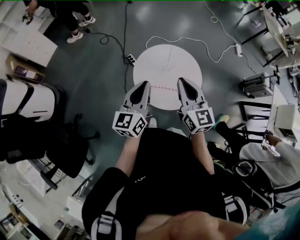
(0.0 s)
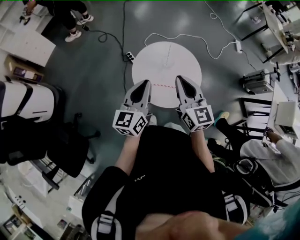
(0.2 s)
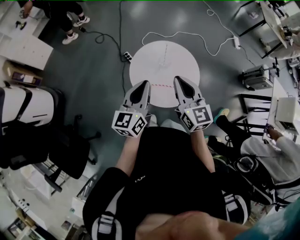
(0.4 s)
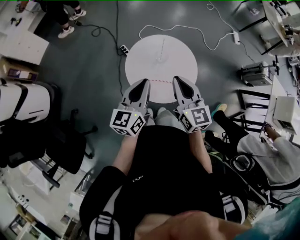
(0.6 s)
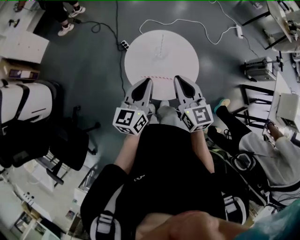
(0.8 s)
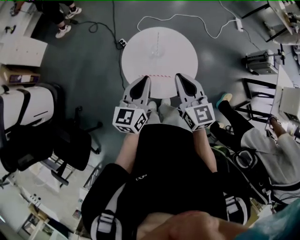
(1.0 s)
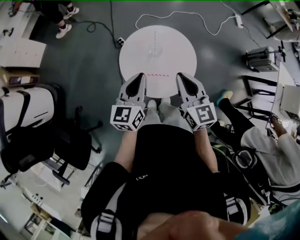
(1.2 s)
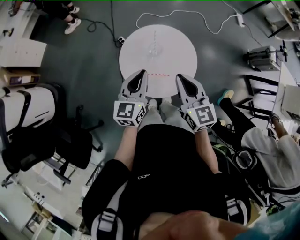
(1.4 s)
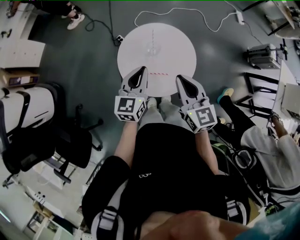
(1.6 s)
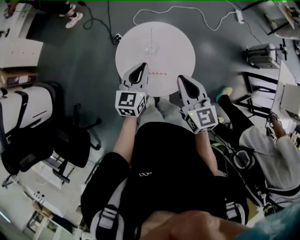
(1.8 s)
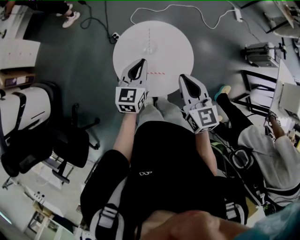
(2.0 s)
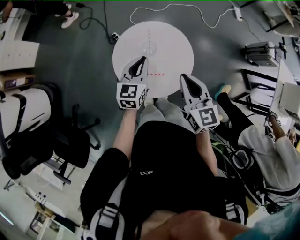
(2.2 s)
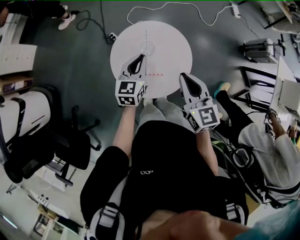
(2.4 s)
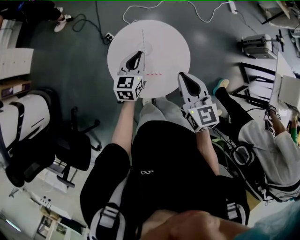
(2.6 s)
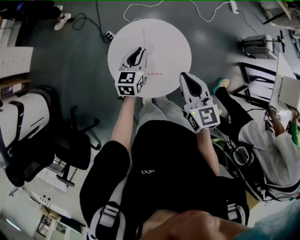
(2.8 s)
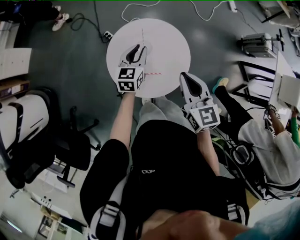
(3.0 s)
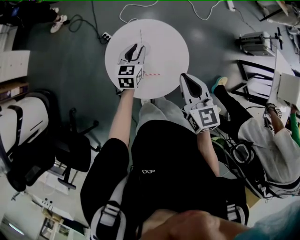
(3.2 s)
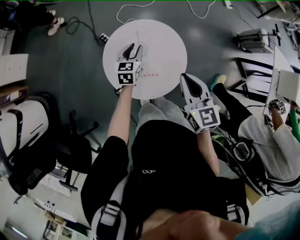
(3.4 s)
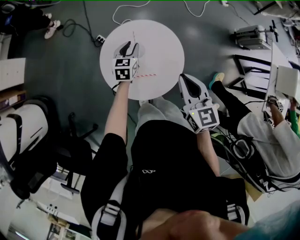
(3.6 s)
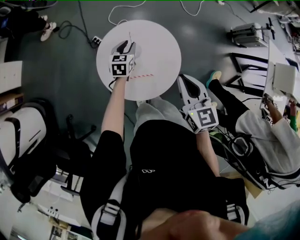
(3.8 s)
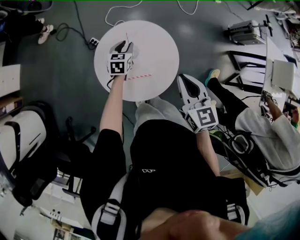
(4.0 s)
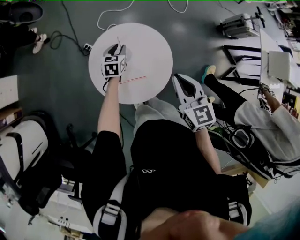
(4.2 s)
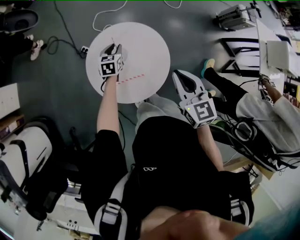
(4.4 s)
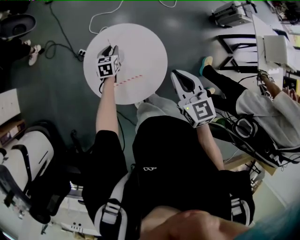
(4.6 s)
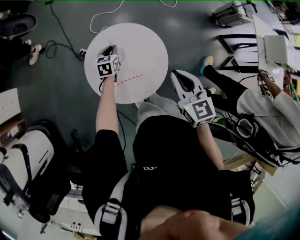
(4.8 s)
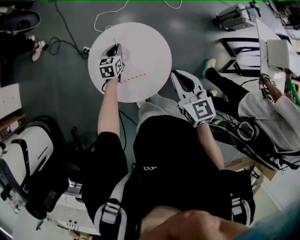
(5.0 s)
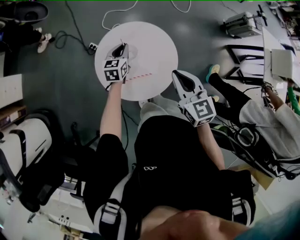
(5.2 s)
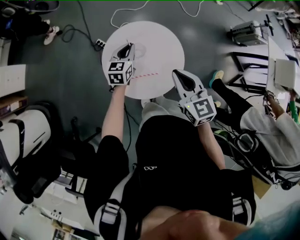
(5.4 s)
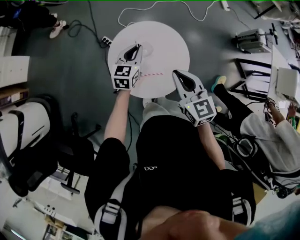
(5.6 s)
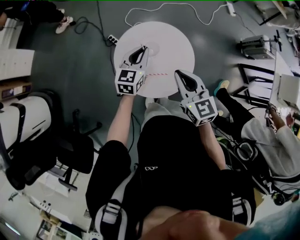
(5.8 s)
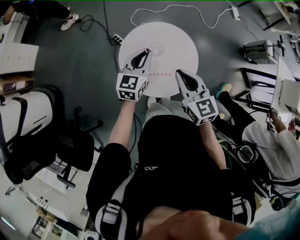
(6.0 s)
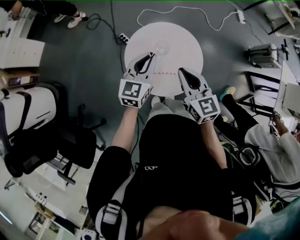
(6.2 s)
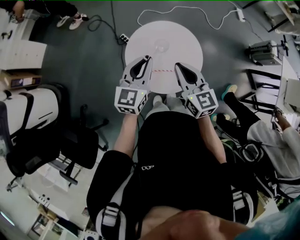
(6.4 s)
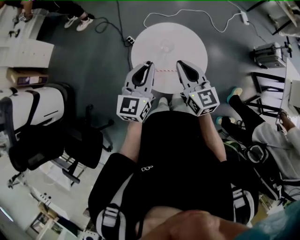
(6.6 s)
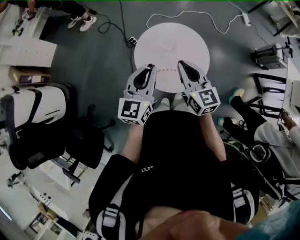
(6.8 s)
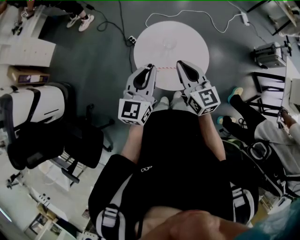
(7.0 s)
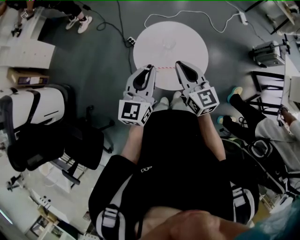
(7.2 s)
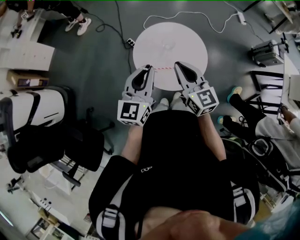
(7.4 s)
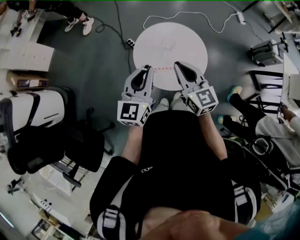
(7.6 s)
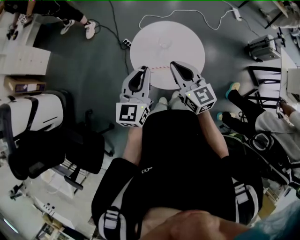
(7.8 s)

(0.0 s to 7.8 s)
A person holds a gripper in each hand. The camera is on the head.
0.0 s - 1.6 s: The left gripper shifts some 15 cm to the right, downward and forward; the right gripper is displaced to the right and downward by approximately 10 cm.
1.6 s - 3.2 s: The left gripper moves forward and downward, some 20 cm, and opens up. Meanwhile the right gripper changes place by some 5 cm.
3.2 s - 4.6 s: The left gripper heads downward and forward, covering roughly 10 cm.
4.6 s - 6.2 s: The left gripper moves upward and backward, approximately 25 cm, and rotates about 30 degrees. The right gripper heads to the left, covering approximately 10 cm, and turns by about 20 degrees.
6.2 s - 7.8 s: The right gripper is displaced to the left by about 5 cm. The left gripper travels backward, to the left and upward by roughly 15 cm.

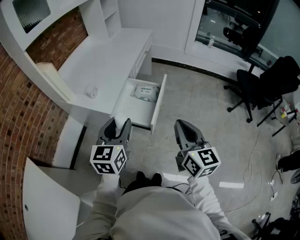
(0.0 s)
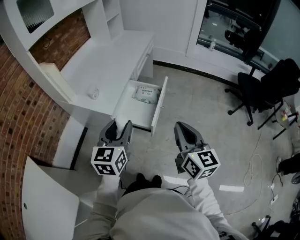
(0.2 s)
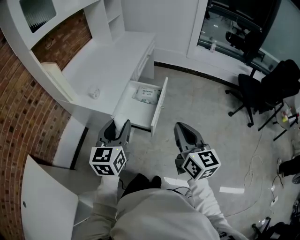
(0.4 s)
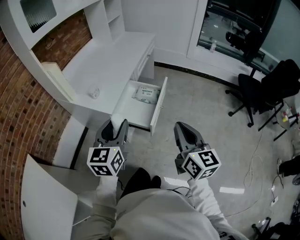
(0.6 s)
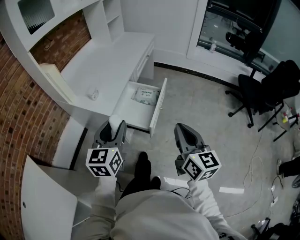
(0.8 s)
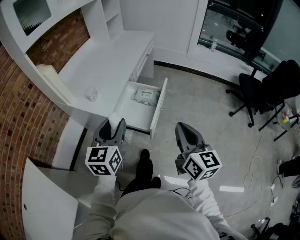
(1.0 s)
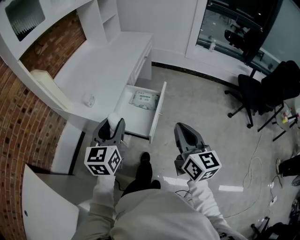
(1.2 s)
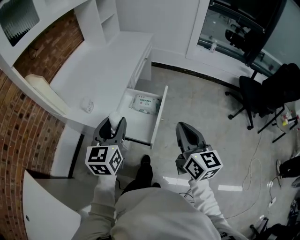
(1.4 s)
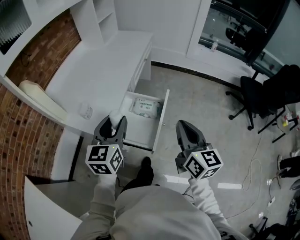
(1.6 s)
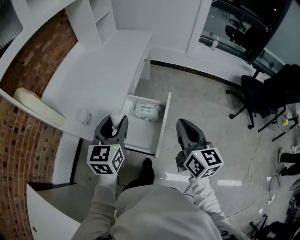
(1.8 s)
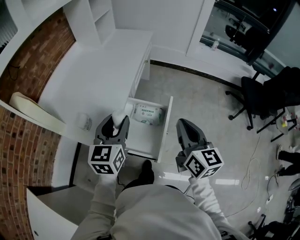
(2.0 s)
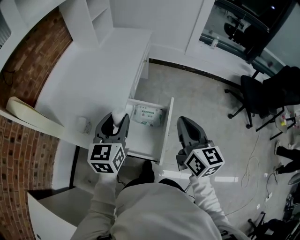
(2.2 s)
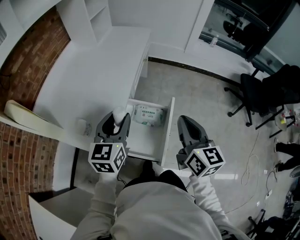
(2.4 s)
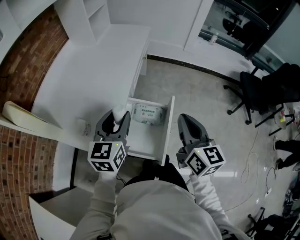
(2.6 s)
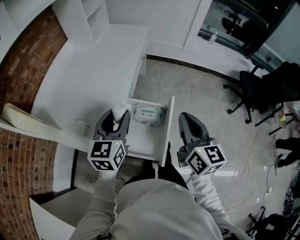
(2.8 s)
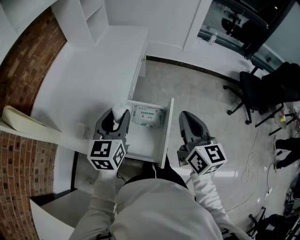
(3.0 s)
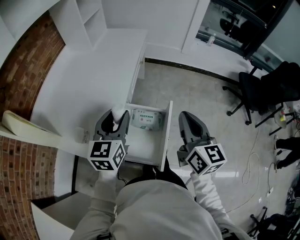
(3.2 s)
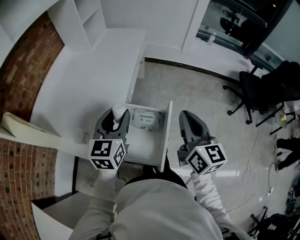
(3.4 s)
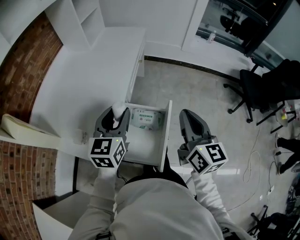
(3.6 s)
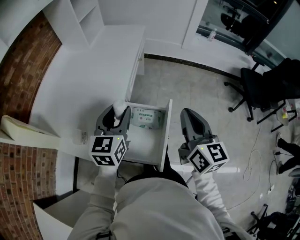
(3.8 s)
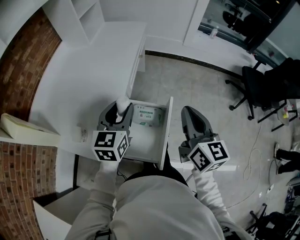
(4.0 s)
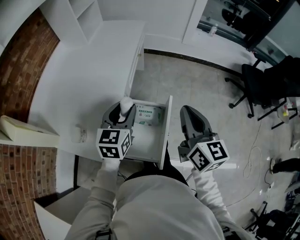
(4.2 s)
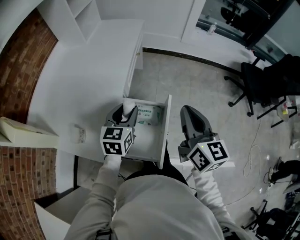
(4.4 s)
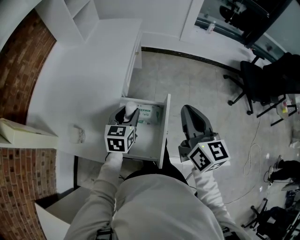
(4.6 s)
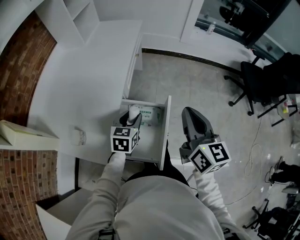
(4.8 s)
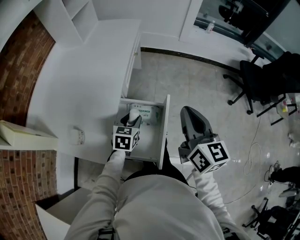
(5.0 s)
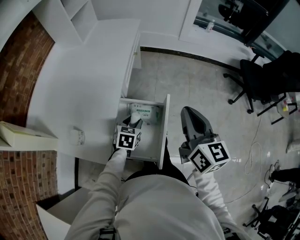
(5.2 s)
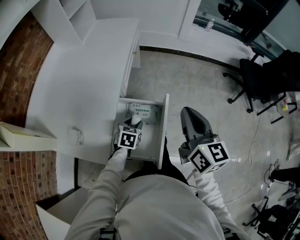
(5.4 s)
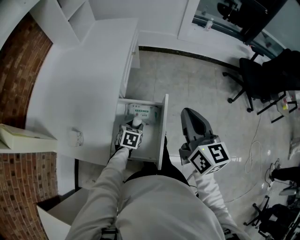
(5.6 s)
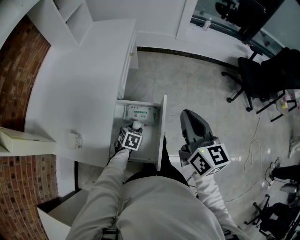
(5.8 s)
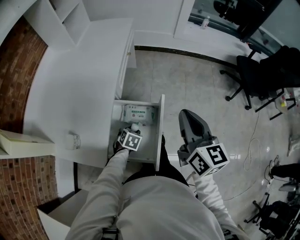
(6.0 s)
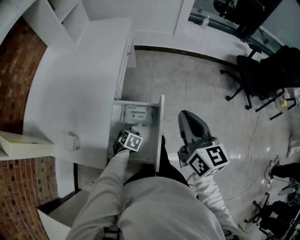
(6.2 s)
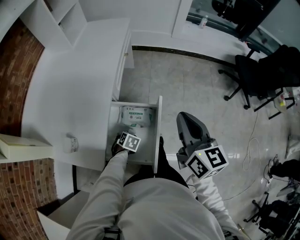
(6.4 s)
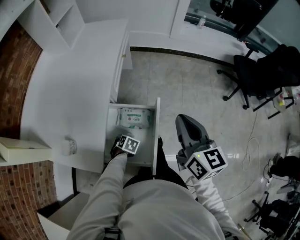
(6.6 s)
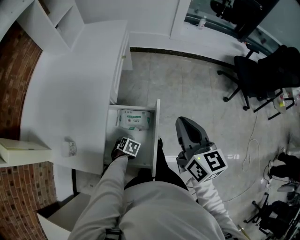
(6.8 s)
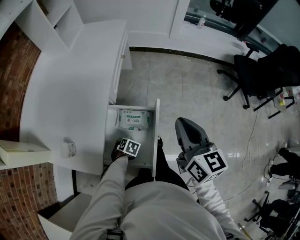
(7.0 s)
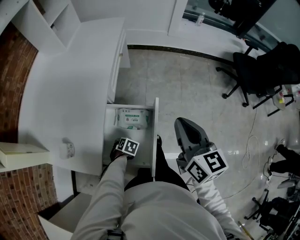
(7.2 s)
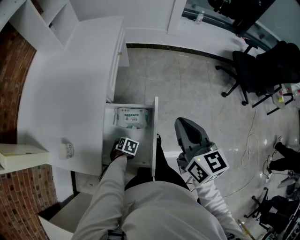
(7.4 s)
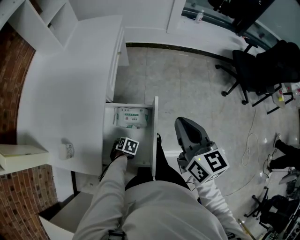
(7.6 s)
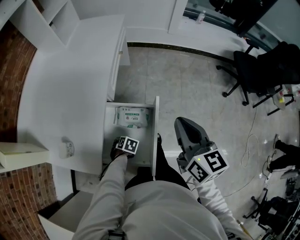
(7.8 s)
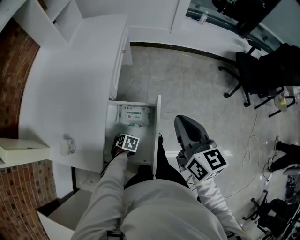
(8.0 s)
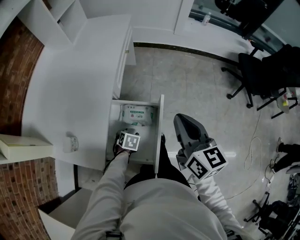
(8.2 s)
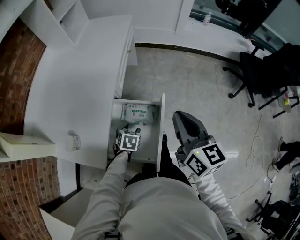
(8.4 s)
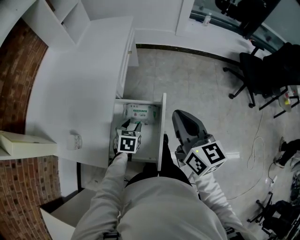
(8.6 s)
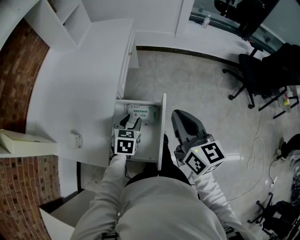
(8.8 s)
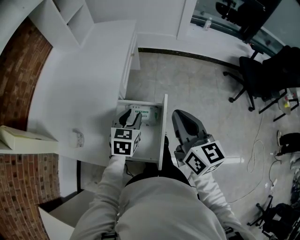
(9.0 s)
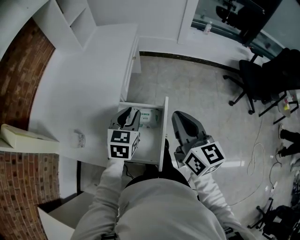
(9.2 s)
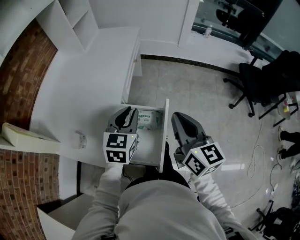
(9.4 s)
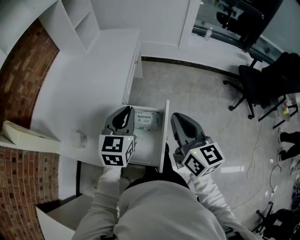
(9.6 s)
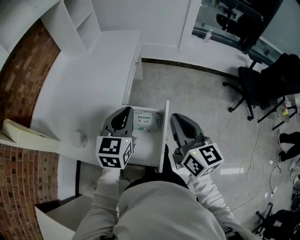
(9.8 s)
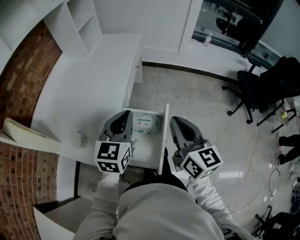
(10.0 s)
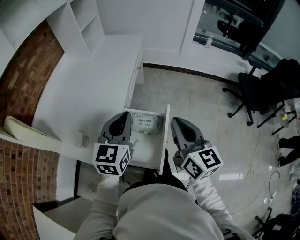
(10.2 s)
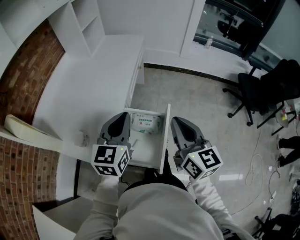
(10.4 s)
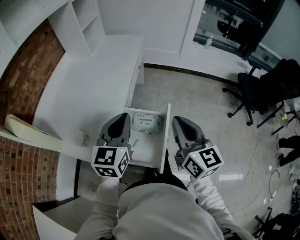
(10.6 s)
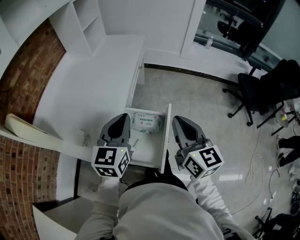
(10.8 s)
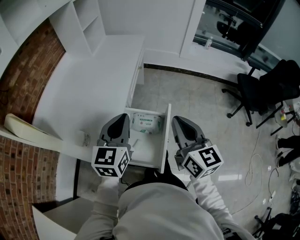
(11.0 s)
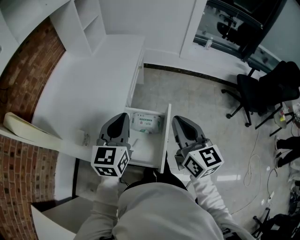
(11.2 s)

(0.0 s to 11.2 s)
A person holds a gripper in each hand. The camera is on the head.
0.0 s - 1.6 s: The grippers both shift forward by some 15 cm.
1.6 s - 3.2 s: Both grippers travel together forward, some 15 cm.
3.2 s - 4.8 s: The left gripper goes approximately 15 cm downward and to the right, and turns by some 20 degrees.
4.8 s - 6.4 s: The left gripper goes approximately 25 cm downward, and points its fingers about 40 degrees further downward.
6.4 s - 8.0 s: The grippers stay close to where they were, moving slightly.
8.0 s - 9.6 s: The left gripper is displaced upward by some 40 cm, angles its fingers upward, by some 60 degrees, and closes up. Meanwhile the right gripper ends up some 5 cm from where it was.
9.6 s - 11.2 s: The left gripper ends up approximately 5 cm from where it was.

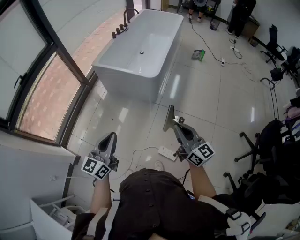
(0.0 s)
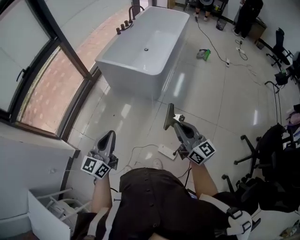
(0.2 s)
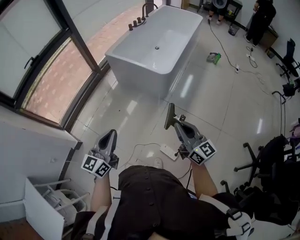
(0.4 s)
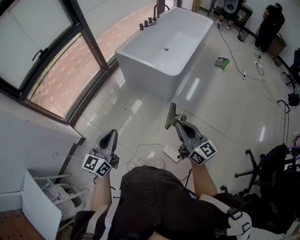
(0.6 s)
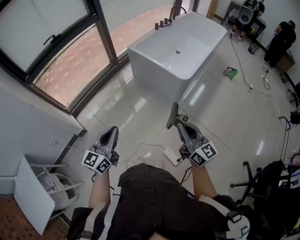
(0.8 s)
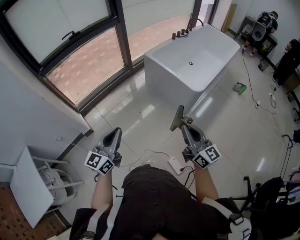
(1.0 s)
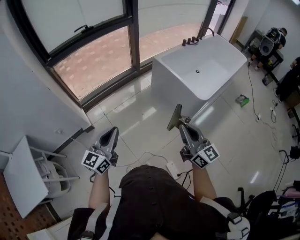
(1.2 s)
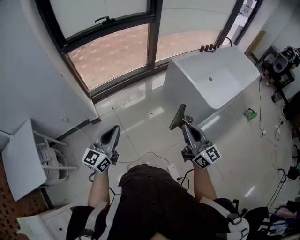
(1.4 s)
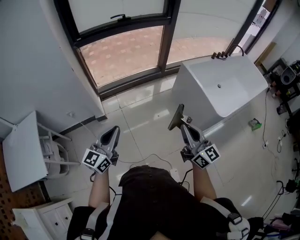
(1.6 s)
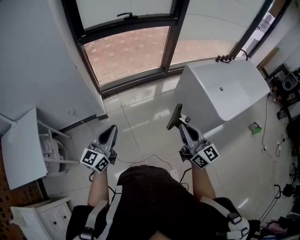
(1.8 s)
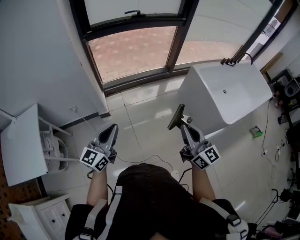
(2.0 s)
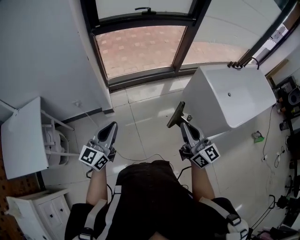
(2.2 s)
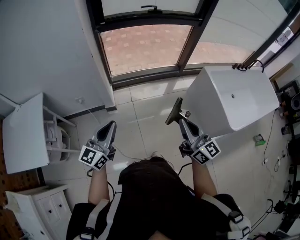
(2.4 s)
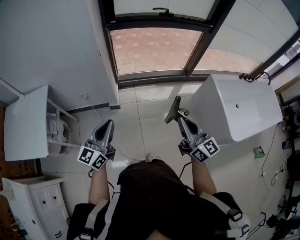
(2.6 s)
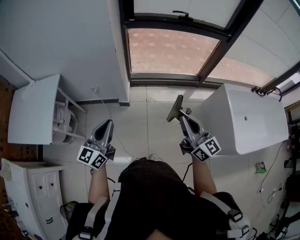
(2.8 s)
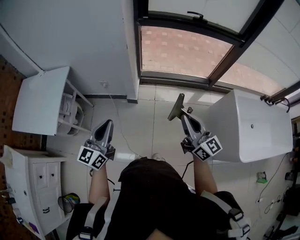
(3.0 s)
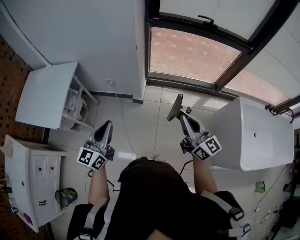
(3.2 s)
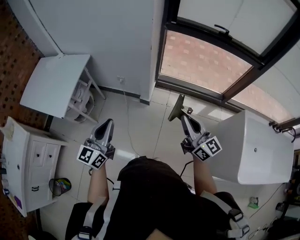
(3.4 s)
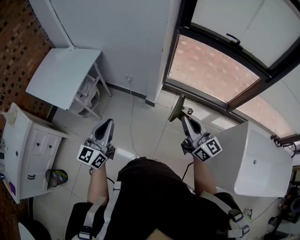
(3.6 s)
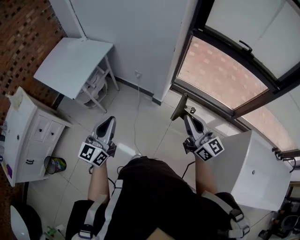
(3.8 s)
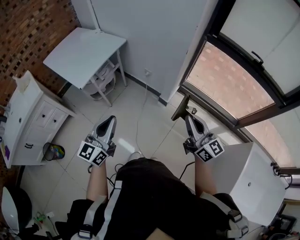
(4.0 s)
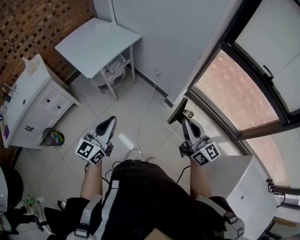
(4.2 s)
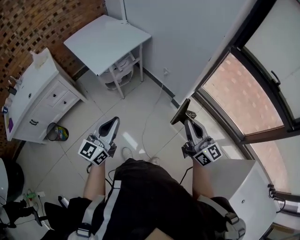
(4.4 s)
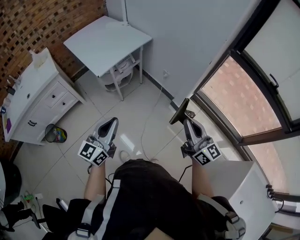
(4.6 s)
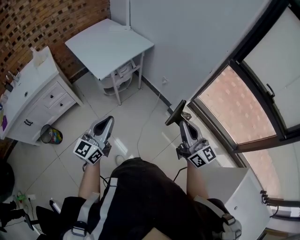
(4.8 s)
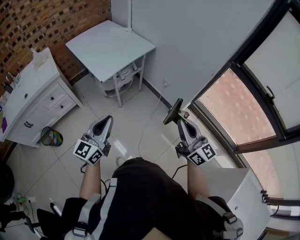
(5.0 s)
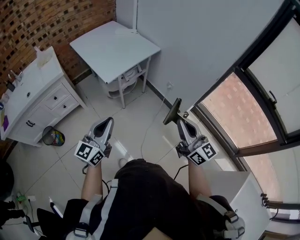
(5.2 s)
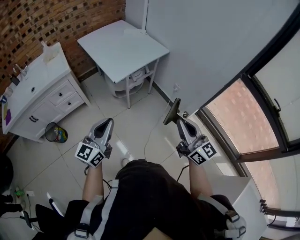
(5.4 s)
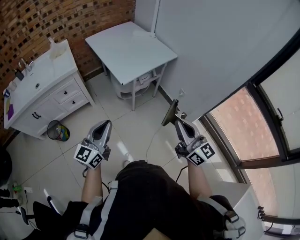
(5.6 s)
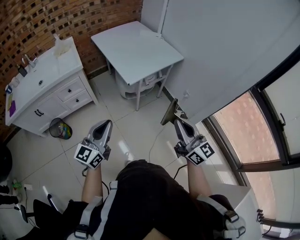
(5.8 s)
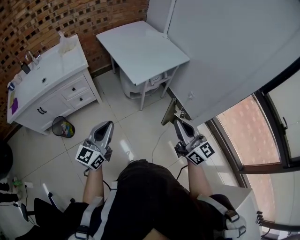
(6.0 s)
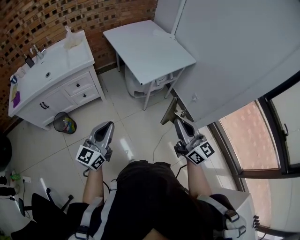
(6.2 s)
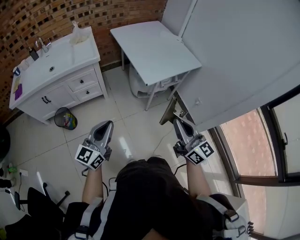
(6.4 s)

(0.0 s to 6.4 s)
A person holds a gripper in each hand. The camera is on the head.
0.0 s - 1.6 s: The left gripper changes place by some 30 cm, and turns by roughly 40 degrees, while the right gripper ends up roughly 30 cm from where it was, and swivels roughly 40 degrees.
1.6 s - 3.2 s: The left gripper ends up approximately 20 cm from where it was, and rotates about 40 degrees. Meanwhile the right gripper ends up about 25 cm from where it was, and rotates roughly 40 degrees.
3.2 s - 4.8 s: The left gripper shifts by roughly 20 cm, and changes its angle by roughly 30 degrees. Meanwhile the right gripper changes place by roughly 20 cm, and swivels about 40 degrees.
4.8 s - 6.4 s: The left gripper is displaced to the left by approximately 25 cm. Meanwhile the right gripper travels to the left and forward by about 30 cm, and changes its angle by approximately 20 degrees.
